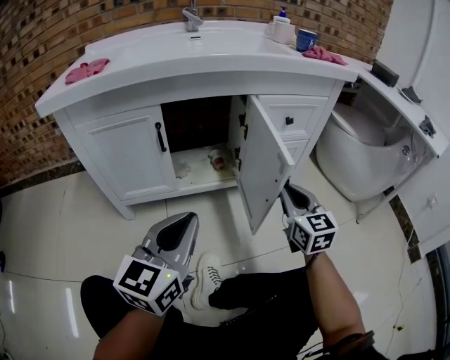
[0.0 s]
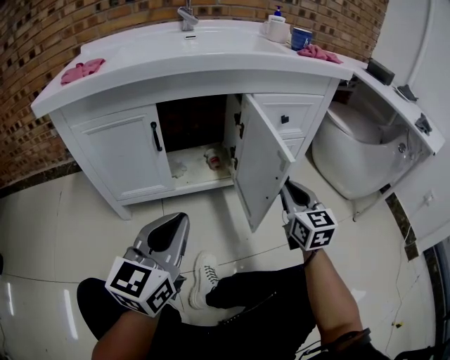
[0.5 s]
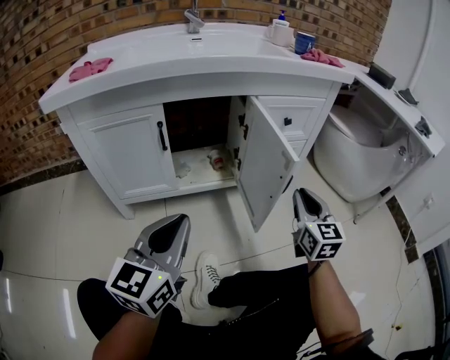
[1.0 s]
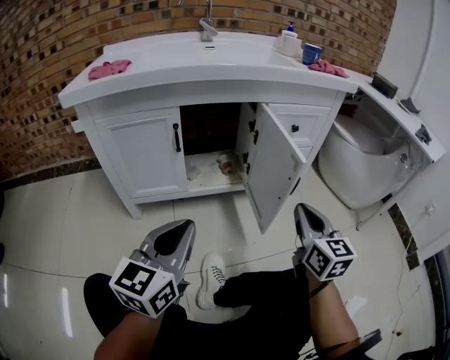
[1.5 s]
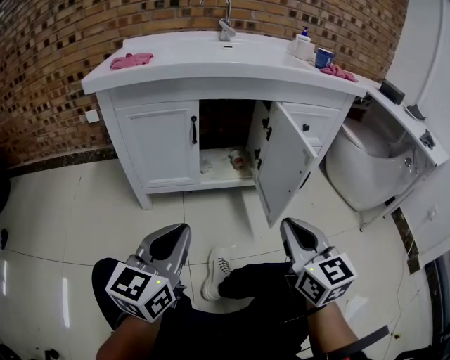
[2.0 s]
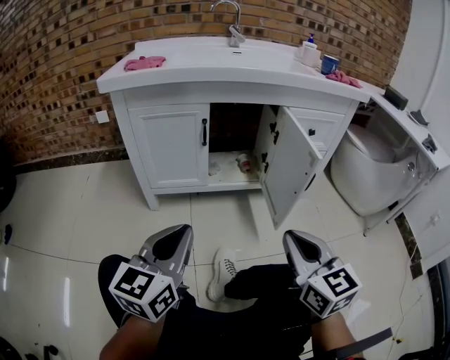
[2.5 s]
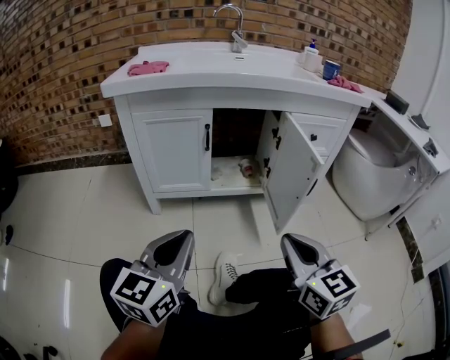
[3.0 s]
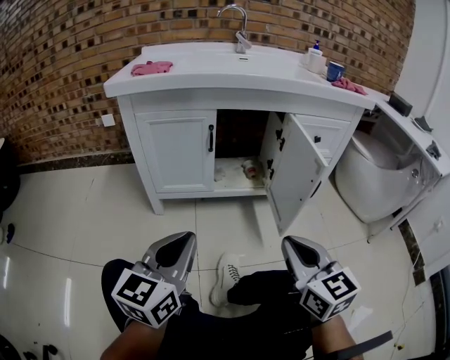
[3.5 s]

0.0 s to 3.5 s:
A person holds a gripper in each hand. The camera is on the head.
0.0 to 2.0 s: The left gripper is displaced backward and to the left by roughly 15 cm. Meanwhile the right gripper goes some 20 cm backward and to the left.
2.0 to 3.5 s: The grippers move only a little.

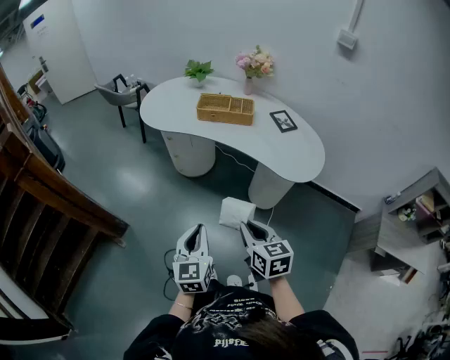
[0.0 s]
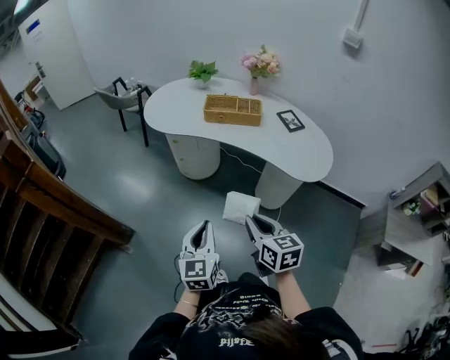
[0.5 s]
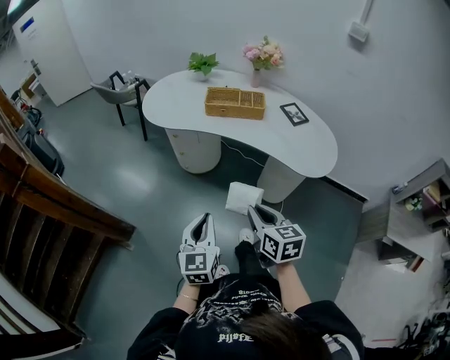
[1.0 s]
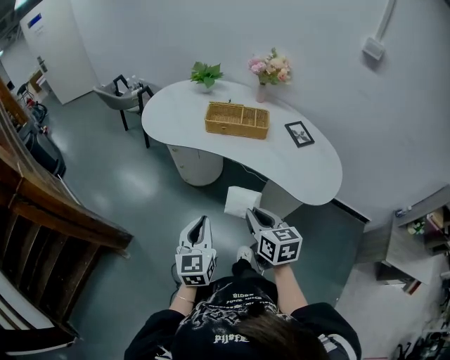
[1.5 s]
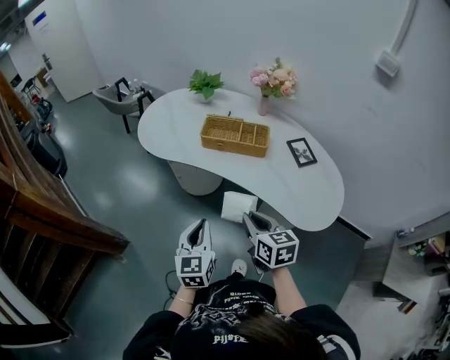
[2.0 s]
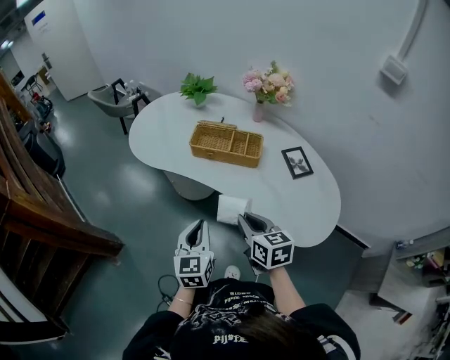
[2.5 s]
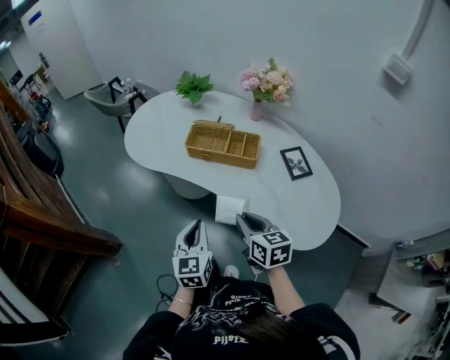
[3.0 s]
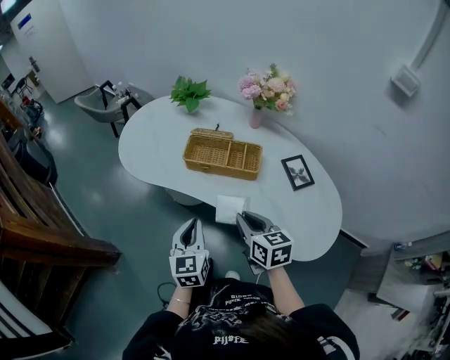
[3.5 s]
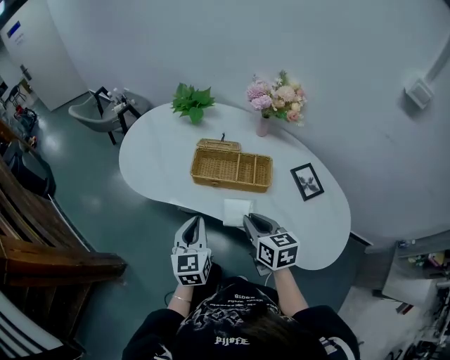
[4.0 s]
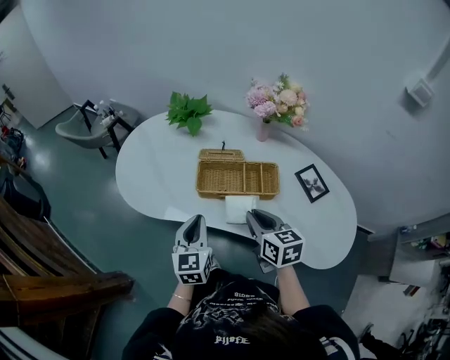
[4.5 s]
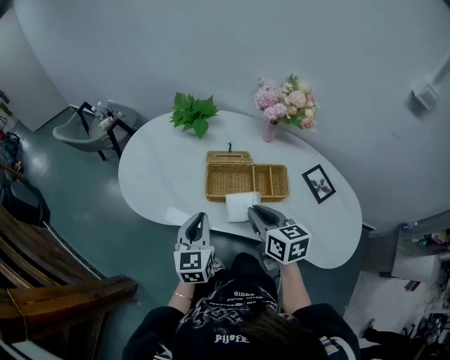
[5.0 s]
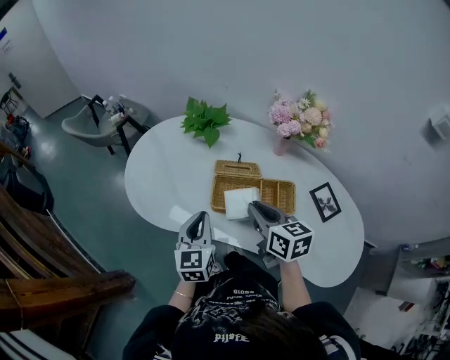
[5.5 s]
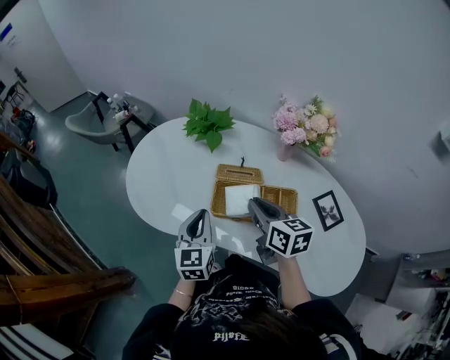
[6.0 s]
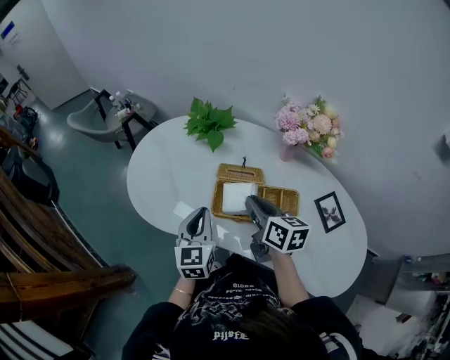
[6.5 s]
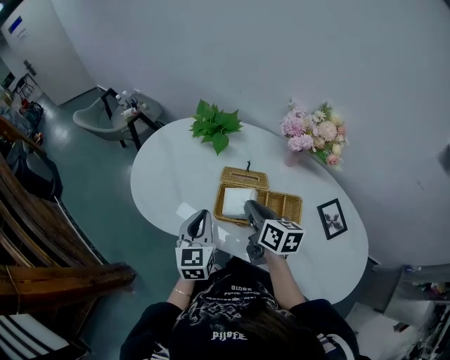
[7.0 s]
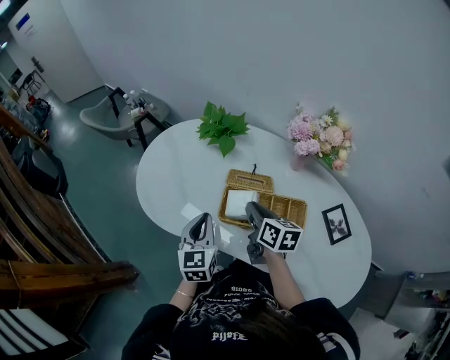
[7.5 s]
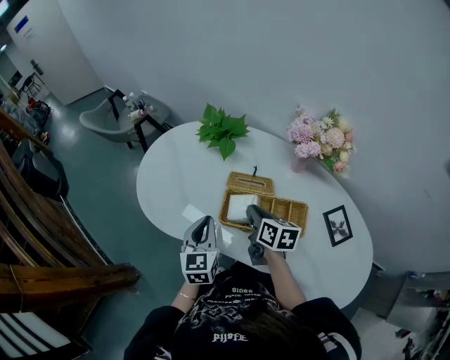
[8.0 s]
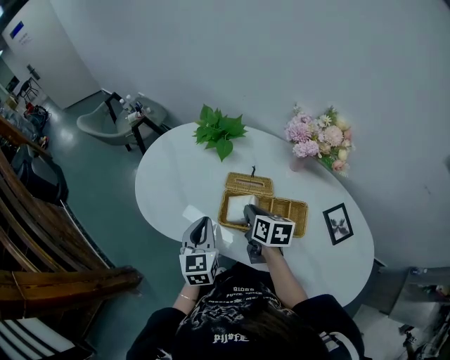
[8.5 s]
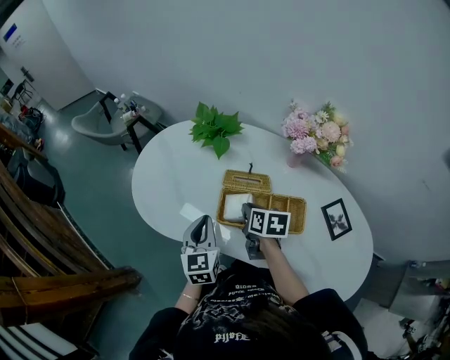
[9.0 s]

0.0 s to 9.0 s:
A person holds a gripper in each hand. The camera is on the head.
0.0 to 2.0 s: Both grippers move forward, about 25 cm.
2.0 to 4.5 s: The two grippers go some 30 cm forward.
4.5 to 7.0 s: Both grippers move forward, about 15 cm.
7.0 to 9.0 s: The right gripper shifts some 5 cm downward, and rotates approximately 20 degrees.

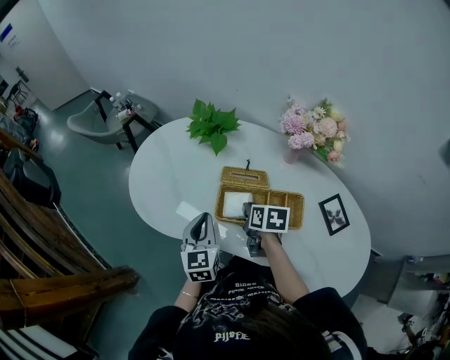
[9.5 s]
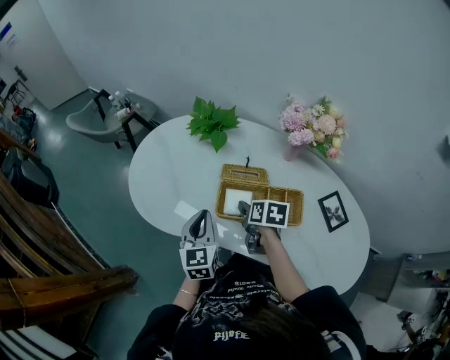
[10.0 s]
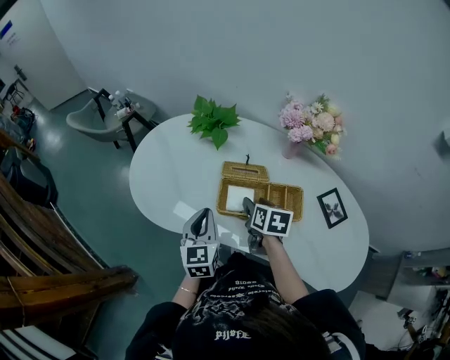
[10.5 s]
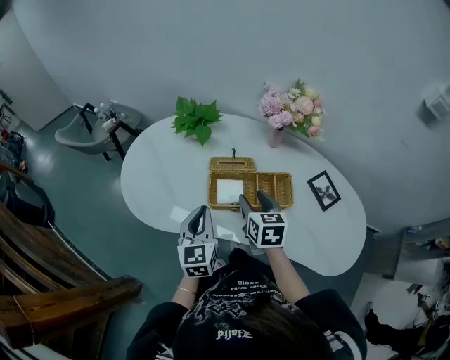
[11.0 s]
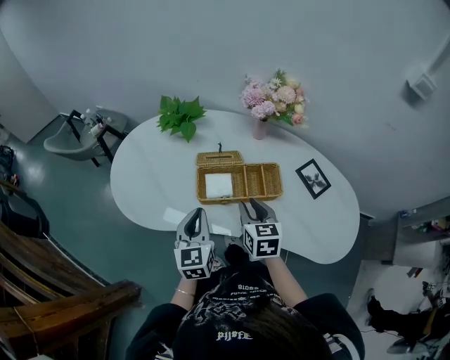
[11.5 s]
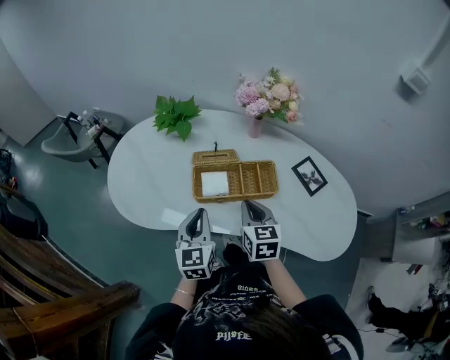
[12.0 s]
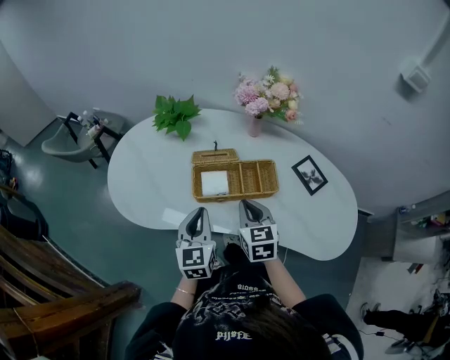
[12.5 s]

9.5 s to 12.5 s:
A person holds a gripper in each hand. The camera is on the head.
9.5 to 11.0 s: The right gripper is displaced upward and backward by roughly 10 cm, swivels some 30 degrees, and opens its fingers.
11.0 to 12.5 s: The right gripper moves backward, roughly 5 cm, and closes its fingers. The left gripper moves roughly 5 cm.

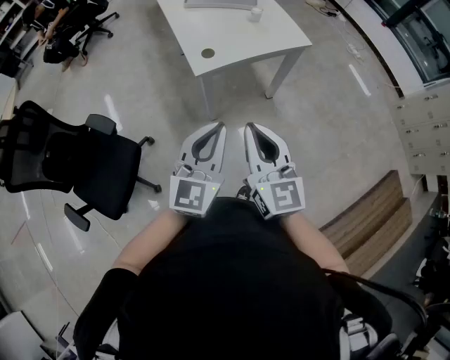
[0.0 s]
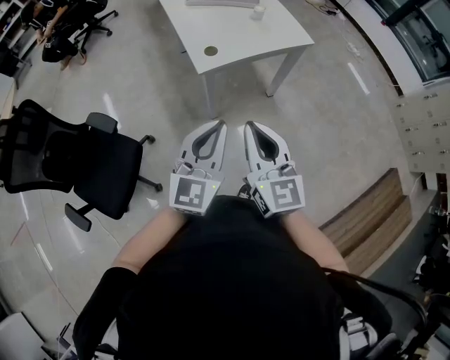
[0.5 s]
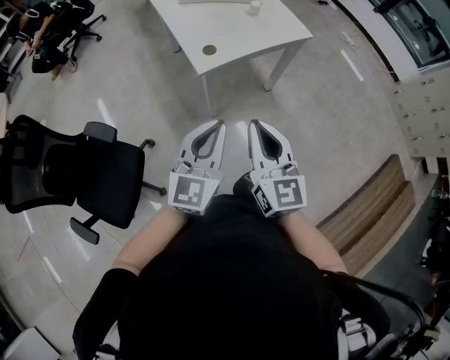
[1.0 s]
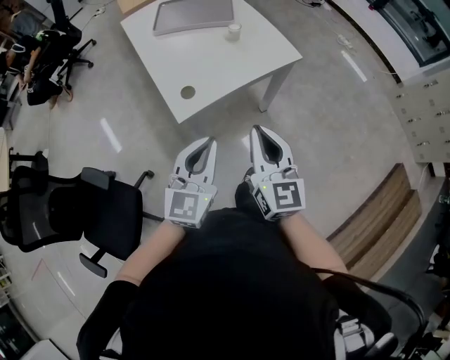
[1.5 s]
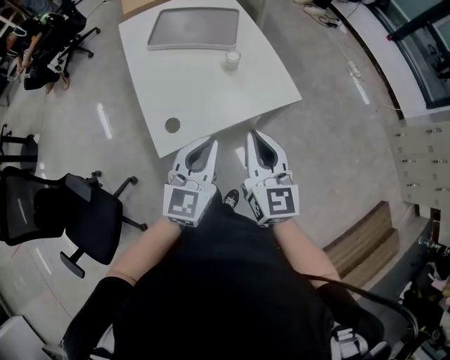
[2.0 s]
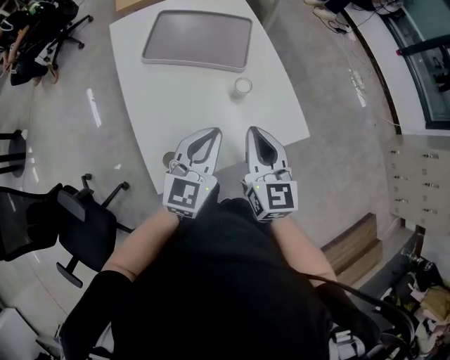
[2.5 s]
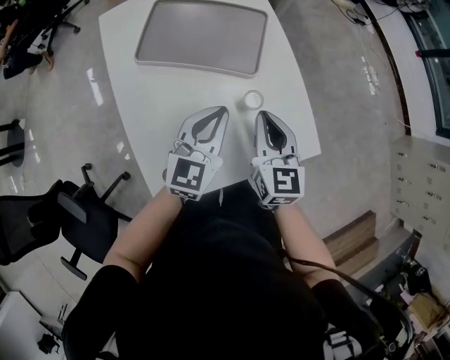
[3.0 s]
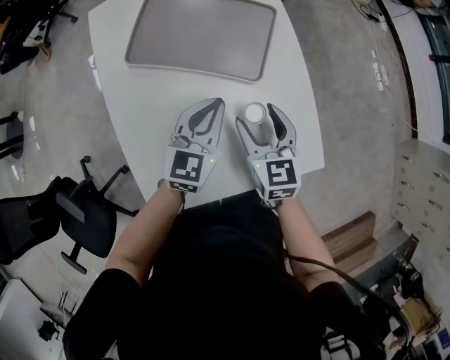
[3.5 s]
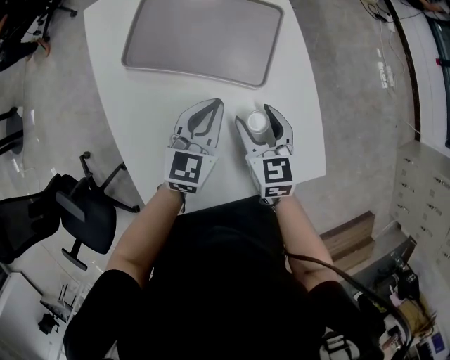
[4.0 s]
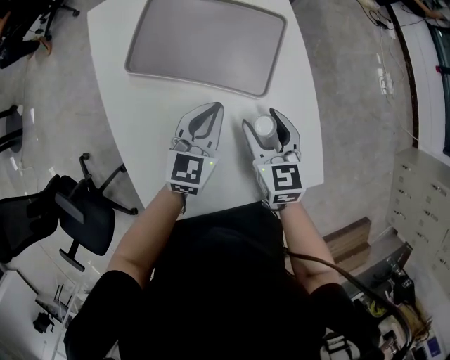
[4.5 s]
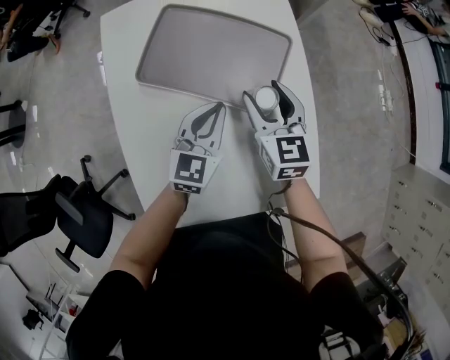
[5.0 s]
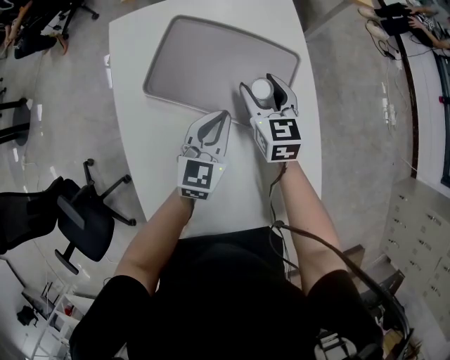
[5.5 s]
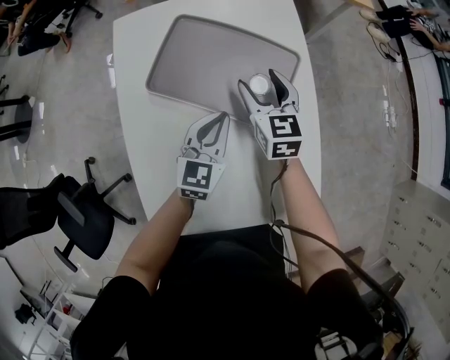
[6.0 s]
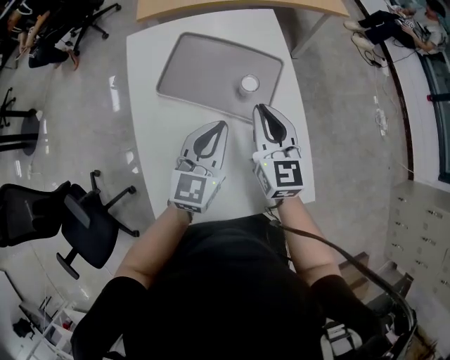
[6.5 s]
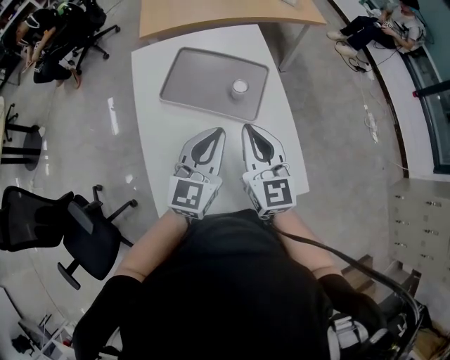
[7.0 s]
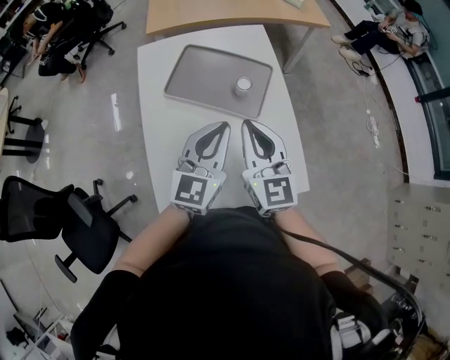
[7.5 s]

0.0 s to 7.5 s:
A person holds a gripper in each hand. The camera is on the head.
0.0 to 2.0 s: The grippers both shift forward by roughly 40 cm.
2.0 to 4.0 s: Both grippers are carried forward, approximately 40 cm. The two grippers go roughly 20 cm downward. The right gripper rotates roughly 30 degrees, and opens up.
4.0 to 5.5 s: The right gripper is displaced forward by approximately 20 cm; the left gripper moves forward, roughly 5 cm.
5.5 to 7.5 s: The left gripper goes some 25 cm upward and backward. Meanwhile the right gripper shifts some 35 cm backward and upward, changes its angle by roughly 20 degrees, and closes up.

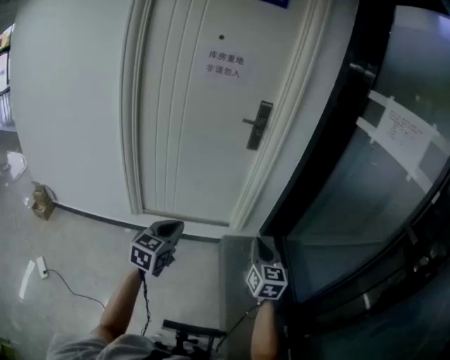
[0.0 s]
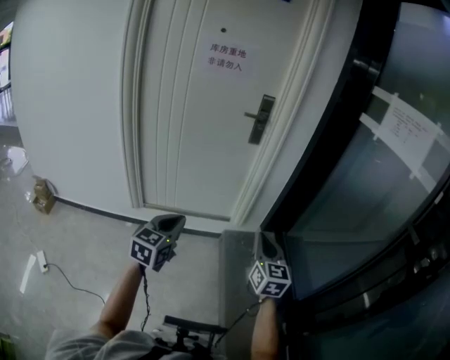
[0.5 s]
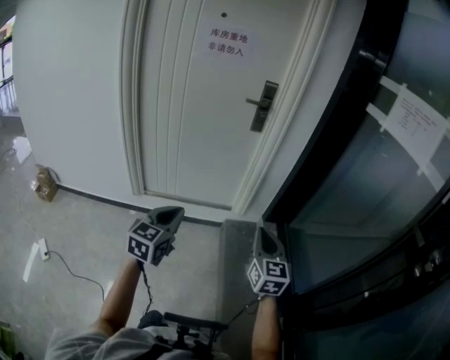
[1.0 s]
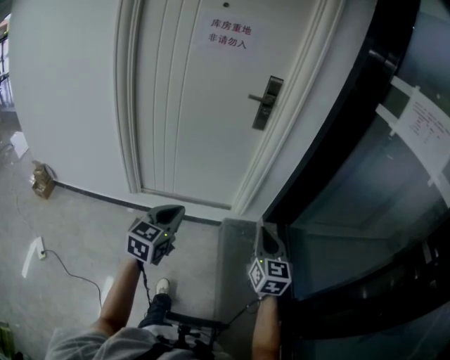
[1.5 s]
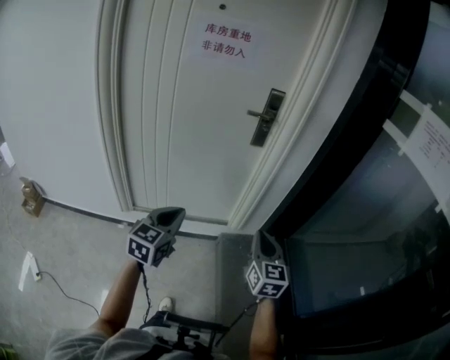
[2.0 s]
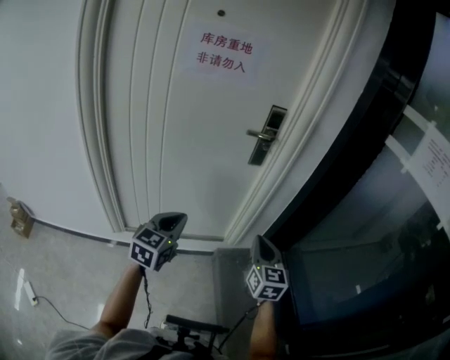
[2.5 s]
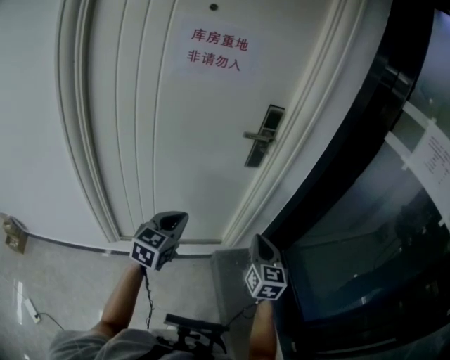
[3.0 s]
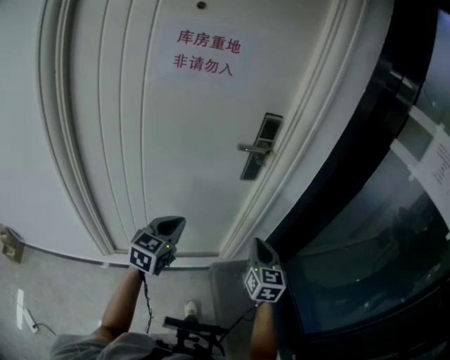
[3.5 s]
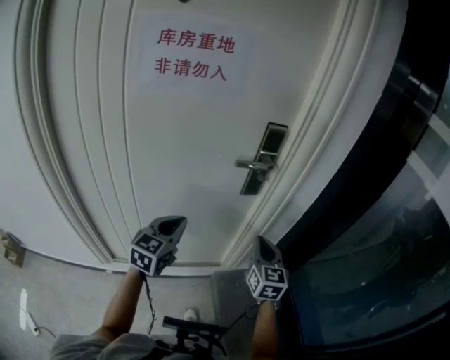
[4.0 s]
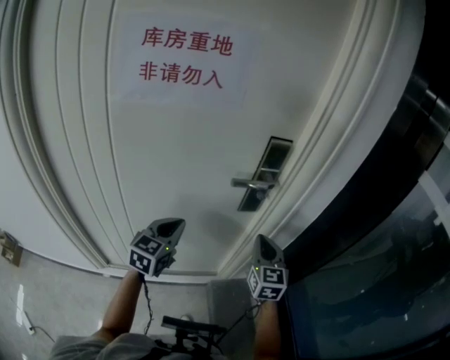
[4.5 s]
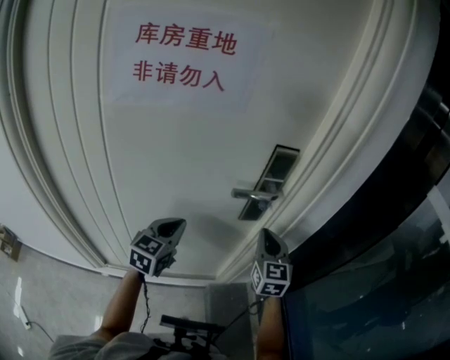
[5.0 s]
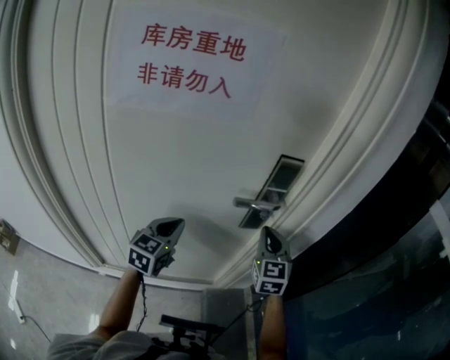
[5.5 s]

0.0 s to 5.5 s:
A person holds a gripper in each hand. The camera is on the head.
0.0 to 2.0 s: The grippers both shift forward by roughly 20 cm.
2.0 to 3.5 s: The grippers both shift forward by about 20 cm.
3.5 to 5.5 s: The two grippers go some 25 cm forward.
